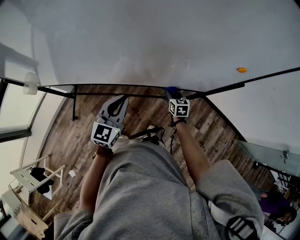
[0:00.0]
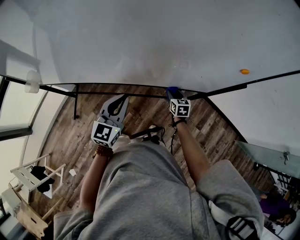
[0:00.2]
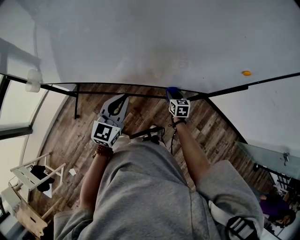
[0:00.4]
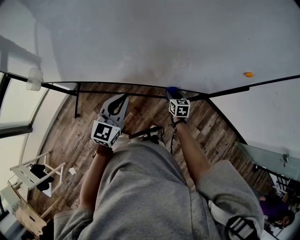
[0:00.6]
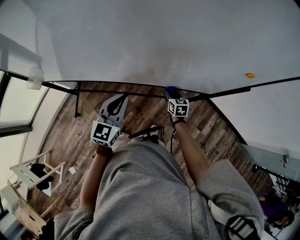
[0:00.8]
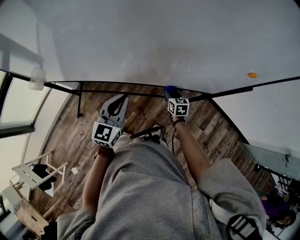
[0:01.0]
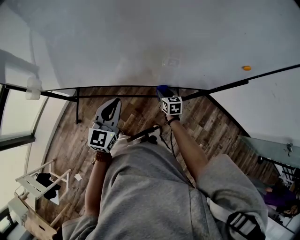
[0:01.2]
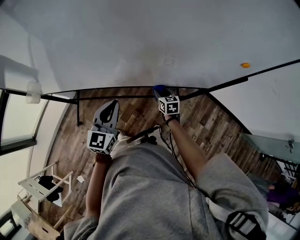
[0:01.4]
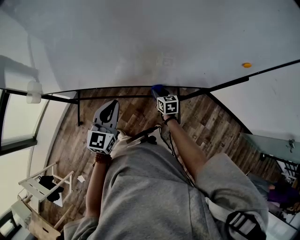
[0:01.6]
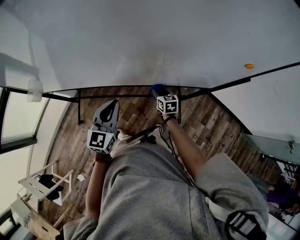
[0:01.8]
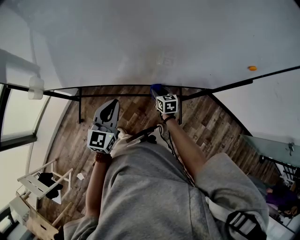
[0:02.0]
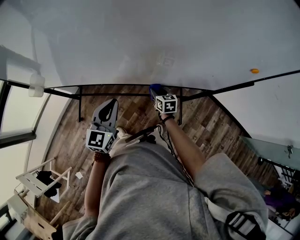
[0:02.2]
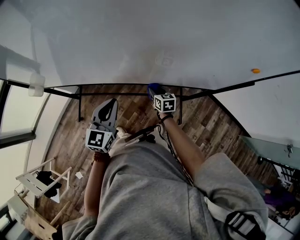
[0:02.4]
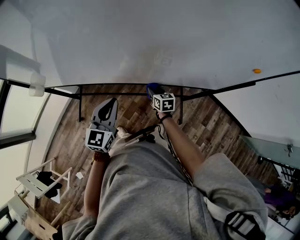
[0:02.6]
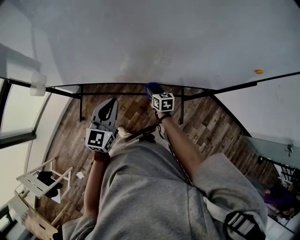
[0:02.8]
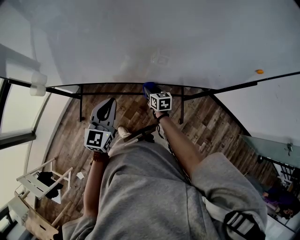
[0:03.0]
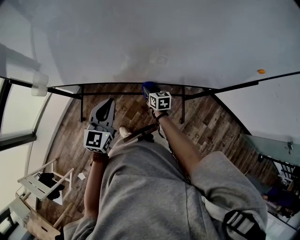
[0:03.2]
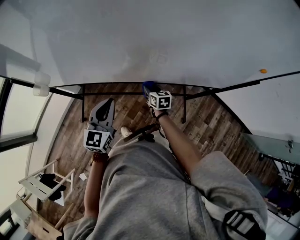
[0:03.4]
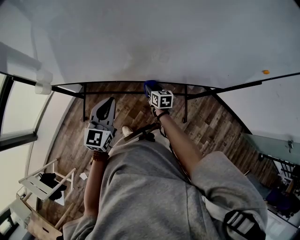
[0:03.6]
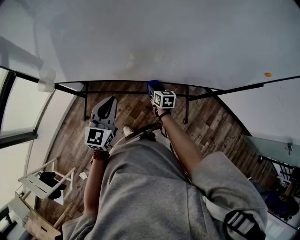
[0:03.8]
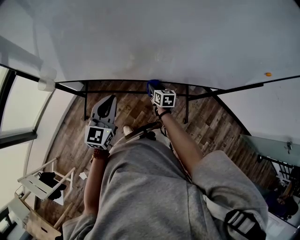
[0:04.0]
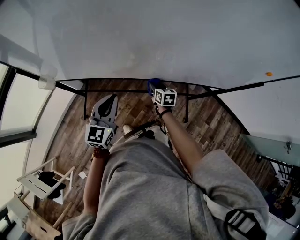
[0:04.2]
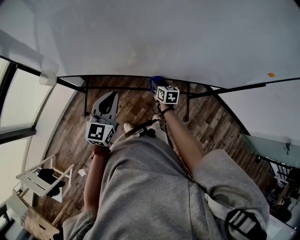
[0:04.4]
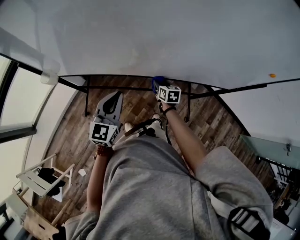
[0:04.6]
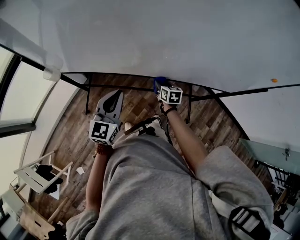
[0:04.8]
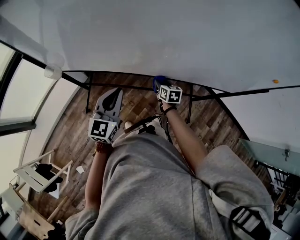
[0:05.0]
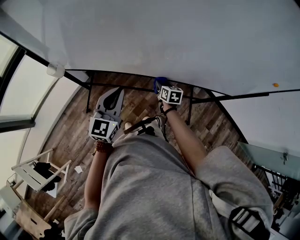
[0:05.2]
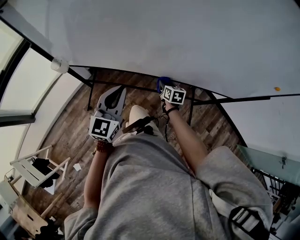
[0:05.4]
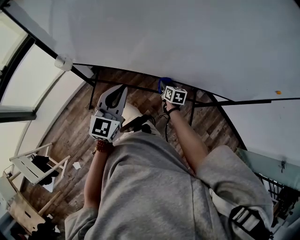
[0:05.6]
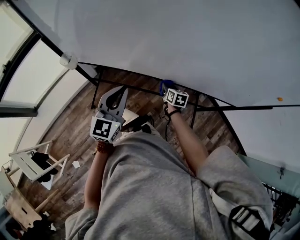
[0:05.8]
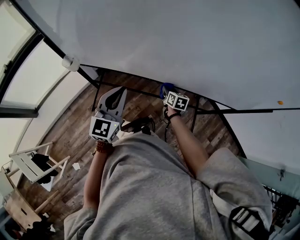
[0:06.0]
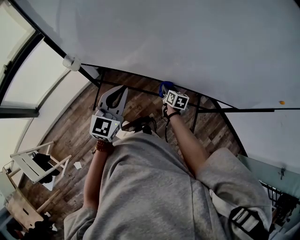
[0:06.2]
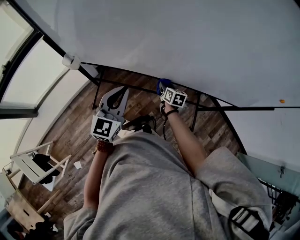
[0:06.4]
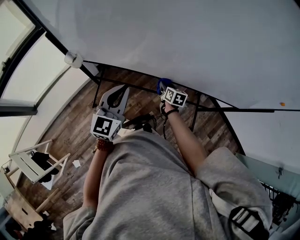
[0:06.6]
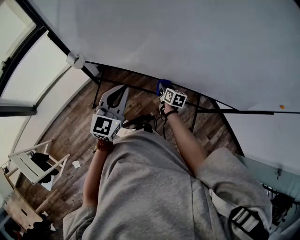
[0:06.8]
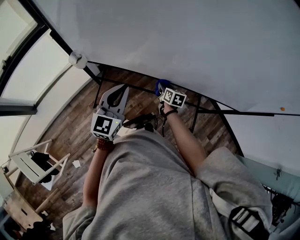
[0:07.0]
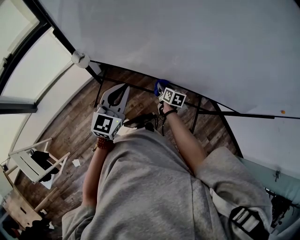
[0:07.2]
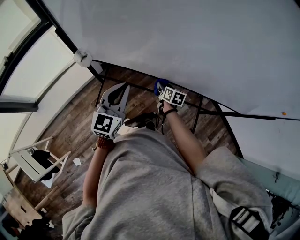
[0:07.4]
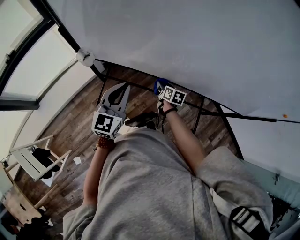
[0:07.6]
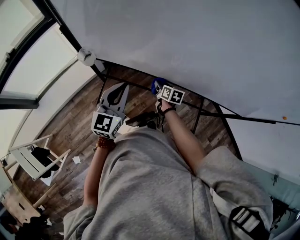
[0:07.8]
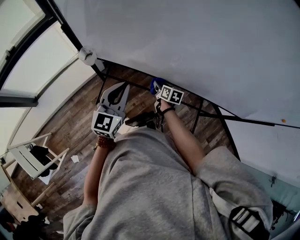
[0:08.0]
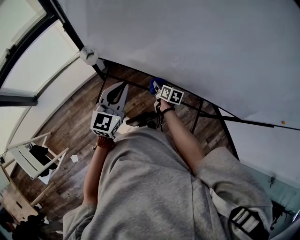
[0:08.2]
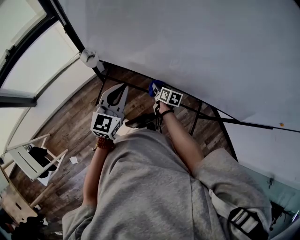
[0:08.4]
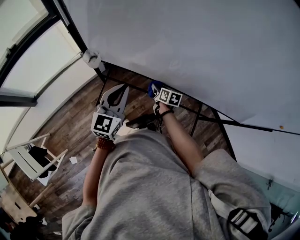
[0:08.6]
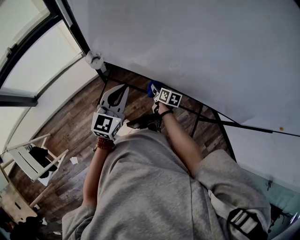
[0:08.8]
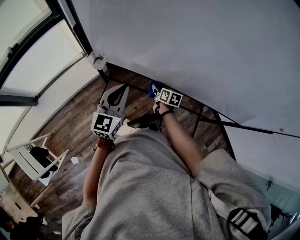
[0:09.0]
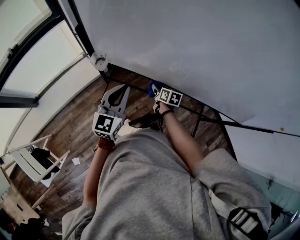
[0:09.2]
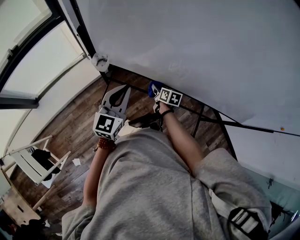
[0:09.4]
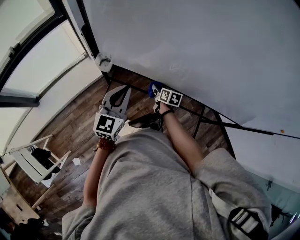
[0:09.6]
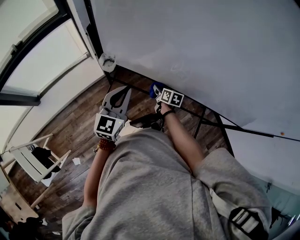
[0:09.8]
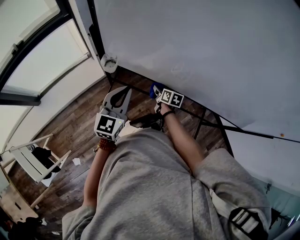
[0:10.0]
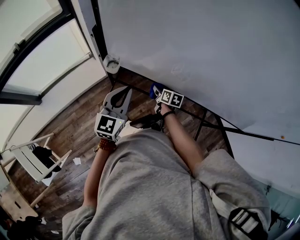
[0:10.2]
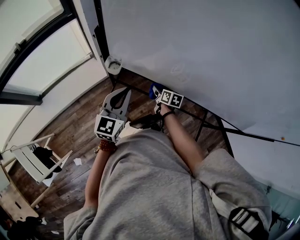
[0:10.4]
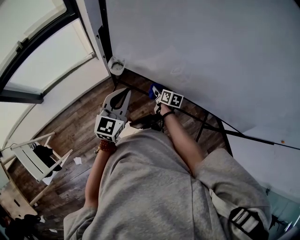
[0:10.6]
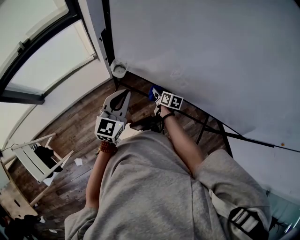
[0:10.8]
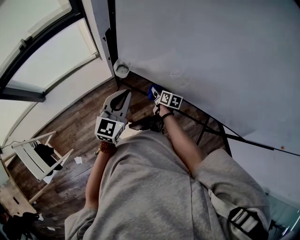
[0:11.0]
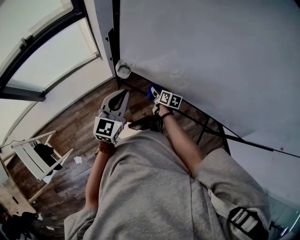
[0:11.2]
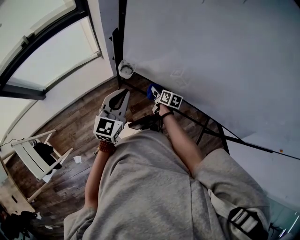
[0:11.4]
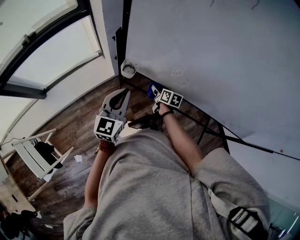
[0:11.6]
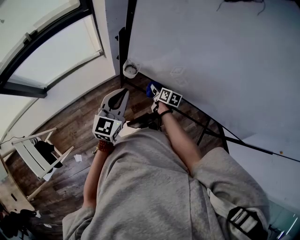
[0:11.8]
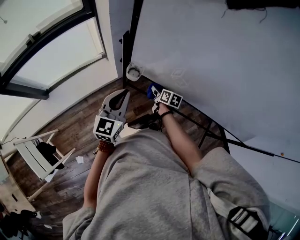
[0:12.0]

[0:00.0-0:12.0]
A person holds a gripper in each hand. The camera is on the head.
0:00.0 to 0:01.6: The left gripper moves to the left, about 10 cm, while the right gripper is displaced to the left by approximately 10 cm.
0:01.6 to 0:03.0: Both grippers travel together to the left, roughly 10 cm.
0:03.0 to 0:04.4: The right gripper moves to the left, about 5 cm; the left gripper goes about 10 cm to the left.
0:04.4 to 0:06.0: The two grippers go some 5 cm to the left.
0:06.0 to 0:07.6: The left gripper is displaced to the left by some 10 cm. Meanwhile the right gripper is displaced to the left by some 15 cm.
0:07.6 to 0:09.0: Both grippers move to the left, about 10 cm.
0:09.0 to 0:10.4: Both grippers move to the left, about 5 cm.
0:10.4 to 0:12.0: The two grippers go approximately 10 cm to the left.

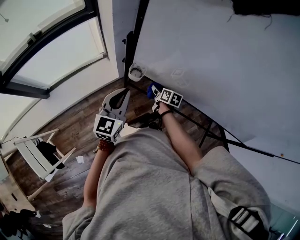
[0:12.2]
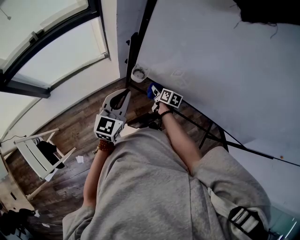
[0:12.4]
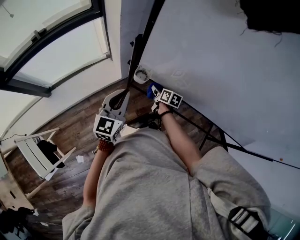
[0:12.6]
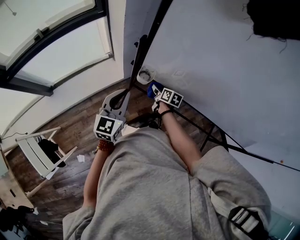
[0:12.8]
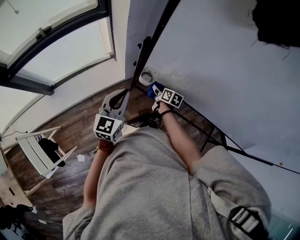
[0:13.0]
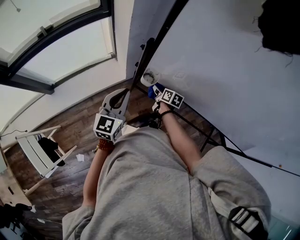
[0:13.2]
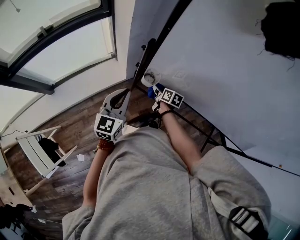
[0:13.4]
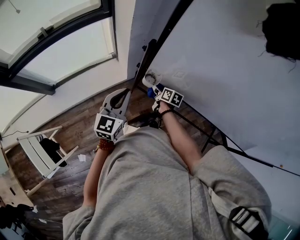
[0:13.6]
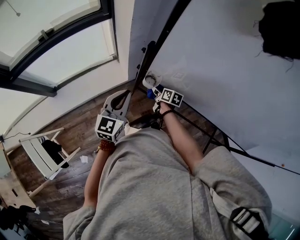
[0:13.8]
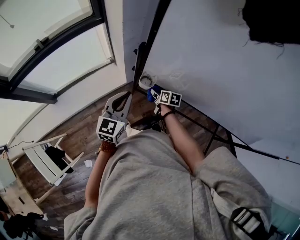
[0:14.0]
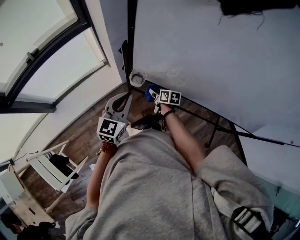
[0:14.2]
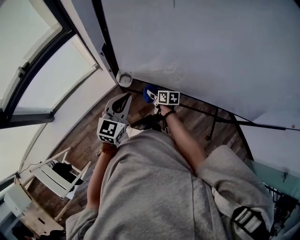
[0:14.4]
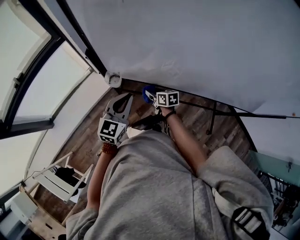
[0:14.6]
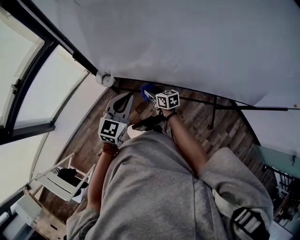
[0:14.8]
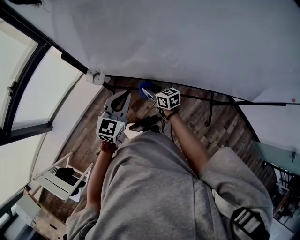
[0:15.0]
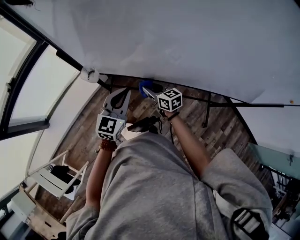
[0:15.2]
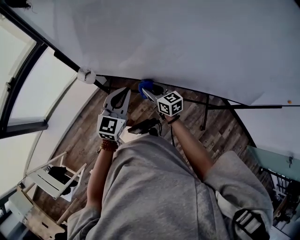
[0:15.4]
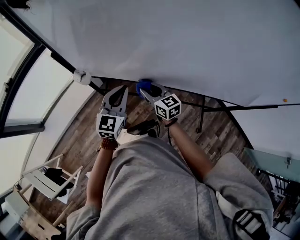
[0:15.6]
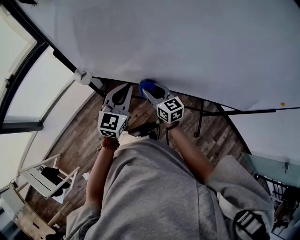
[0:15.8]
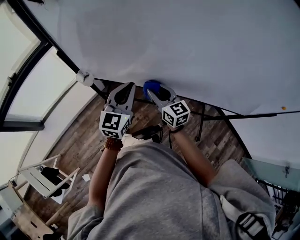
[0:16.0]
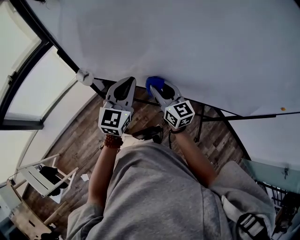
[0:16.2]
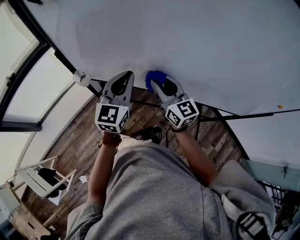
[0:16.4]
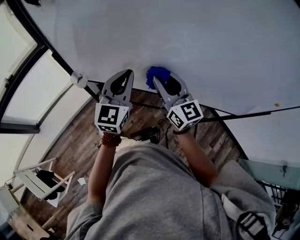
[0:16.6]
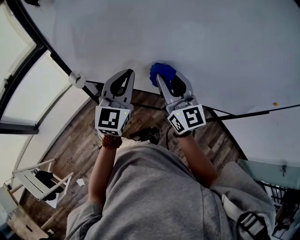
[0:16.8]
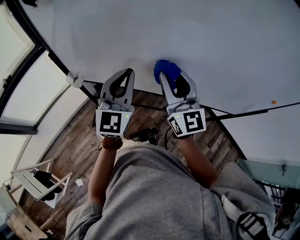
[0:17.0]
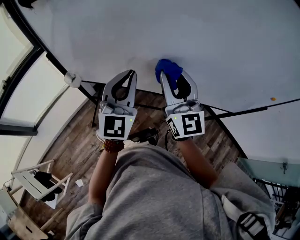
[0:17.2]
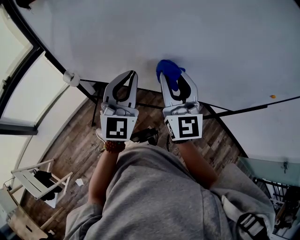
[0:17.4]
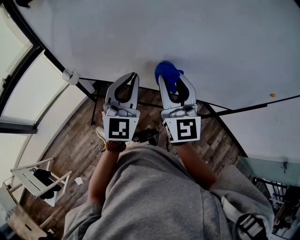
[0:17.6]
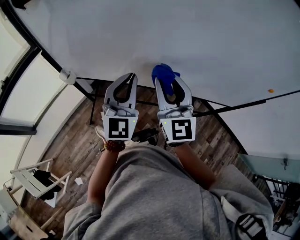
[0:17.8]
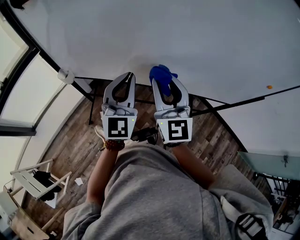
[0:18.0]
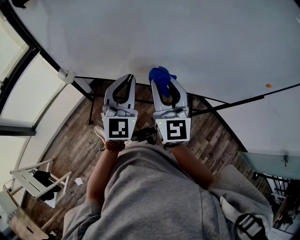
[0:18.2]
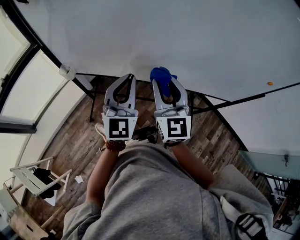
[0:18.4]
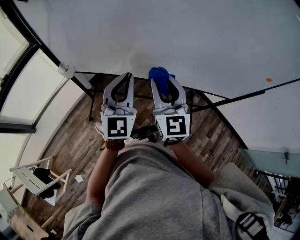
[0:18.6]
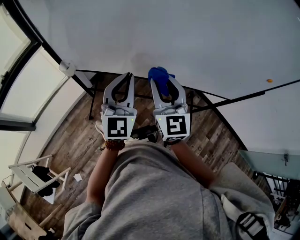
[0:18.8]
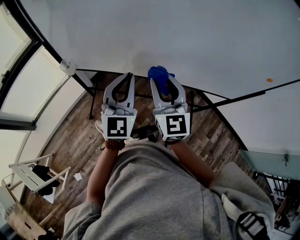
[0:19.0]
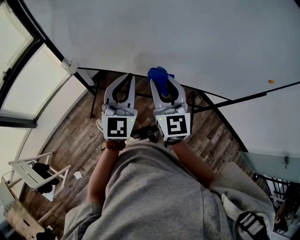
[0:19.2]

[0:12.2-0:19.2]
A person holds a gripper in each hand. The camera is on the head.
0:12.2 to 0:13.6: Both grippers move to the left, roughly 5 cm.
0:13.6 to 0:15.0: The right gripper shifts some 20 cm to the right and backward, and changes its angle by approximately 20 degrees. The left gripper shifts roughly 25 cm to the right, and rotates roughly 20 degrees.
0:15.0 to 0:16.4: The right gripper moves upward and to the right, approximately 30 cm, and swivels roughly 40 degrees, while the left gripper travels upward and to the right by some 15 cm.
0:16.4 to 0:17.8: The right gripper shifts approximately 15 cm upward, backward and to the right, and swivels some 30 degrees; the left gripper moves to the right and backward, some 10 cm.
0:17.8 to 0:19.2: The left gripper shifts roughly 5 cm backward, while the right gripper moves some 5 cm.

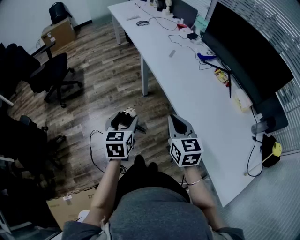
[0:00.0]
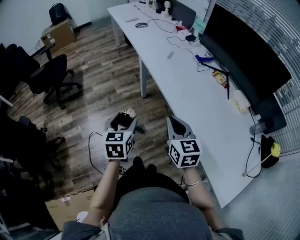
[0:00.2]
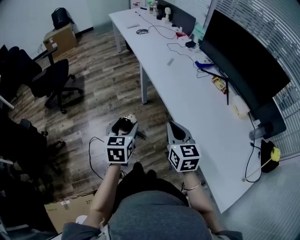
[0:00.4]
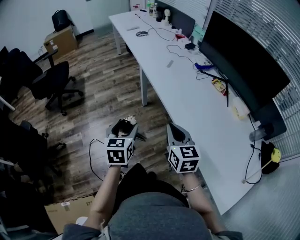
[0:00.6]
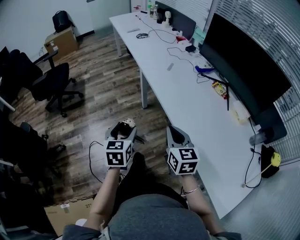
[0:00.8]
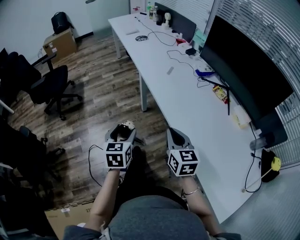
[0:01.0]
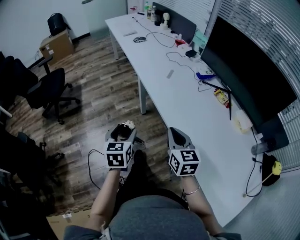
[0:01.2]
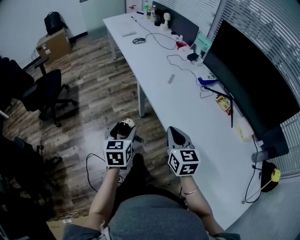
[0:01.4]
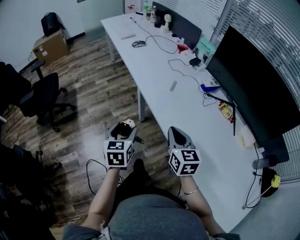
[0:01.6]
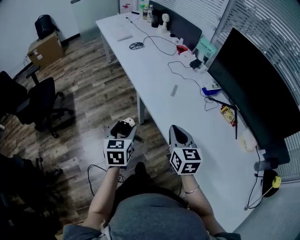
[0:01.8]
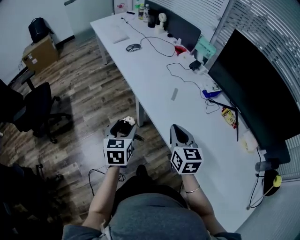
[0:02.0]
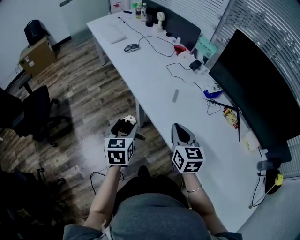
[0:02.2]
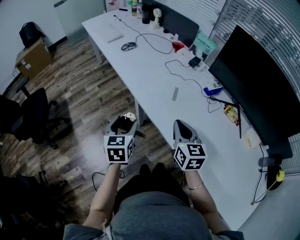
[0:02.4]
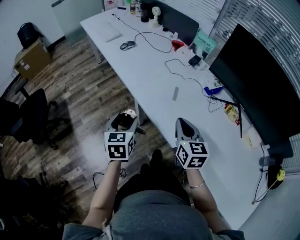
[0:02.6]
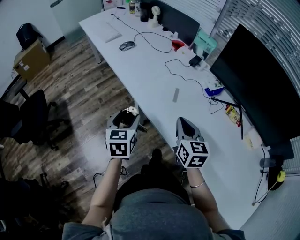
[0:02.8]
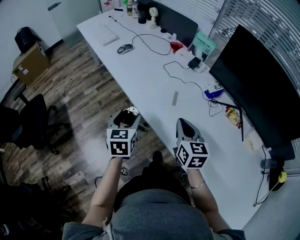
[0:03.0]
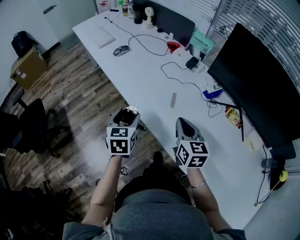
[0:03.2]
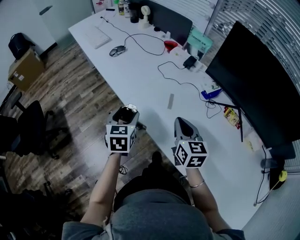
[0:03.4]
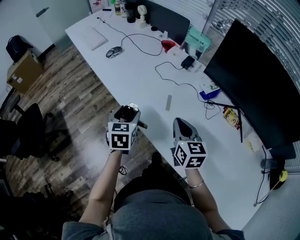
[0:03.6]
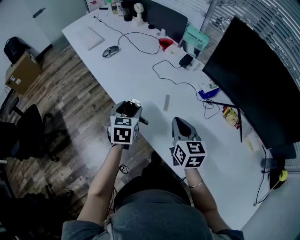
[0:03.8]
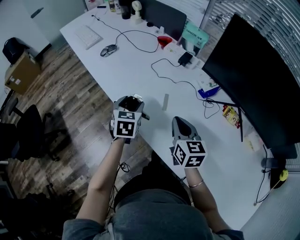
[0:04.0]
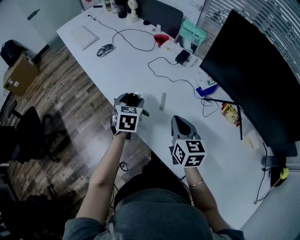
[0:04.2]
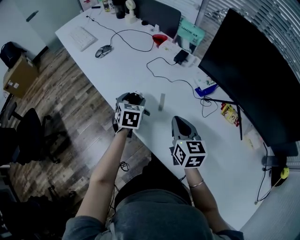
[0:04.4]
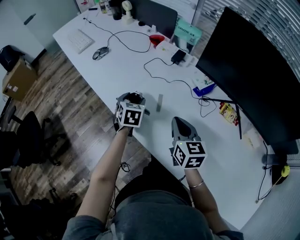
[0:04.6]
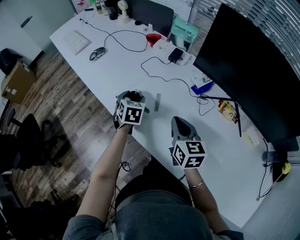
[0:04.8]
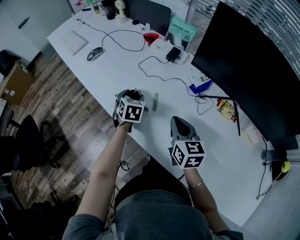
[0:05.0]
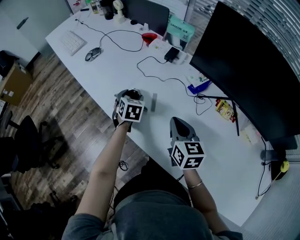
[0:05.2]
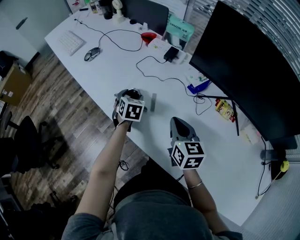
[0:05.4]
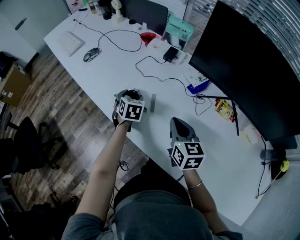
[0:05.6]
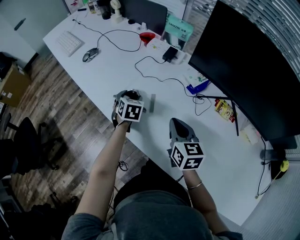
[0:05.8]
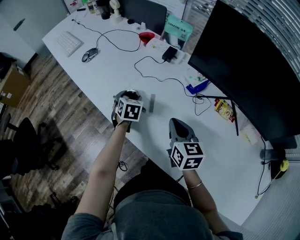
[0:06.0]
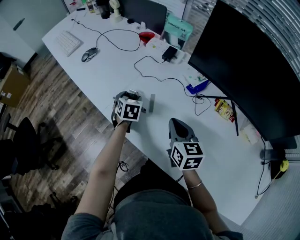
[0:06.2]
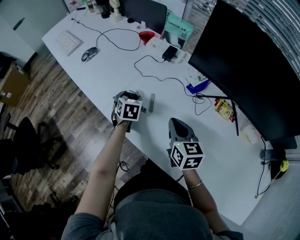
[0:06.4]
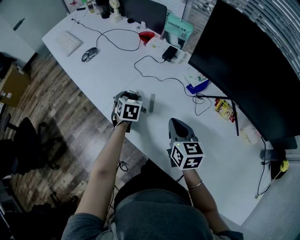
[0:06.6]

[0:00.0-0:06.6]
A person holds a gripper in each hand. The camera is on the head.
0:00.0 to 0:01.6: The grippers both shift forward by about 20 cm.
0:01.6 to 0:03.2: The two grippers go approximately 20 cm forward.
0:03.2 to 0:05.0: The left gripper heads forward, to the right and downward, covering about 20 cm, and rotates about 20 degrees; the right gripper is displaced to the right by approximately 5 cm.
0:05.0 to 0:06.6: There are only small adjustments of the grippers.
